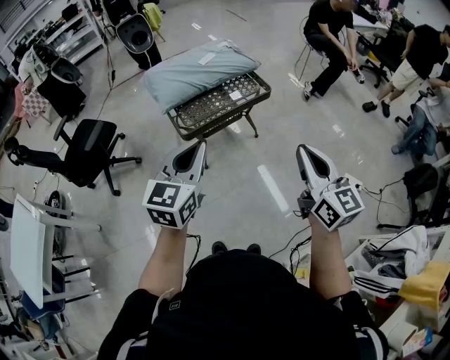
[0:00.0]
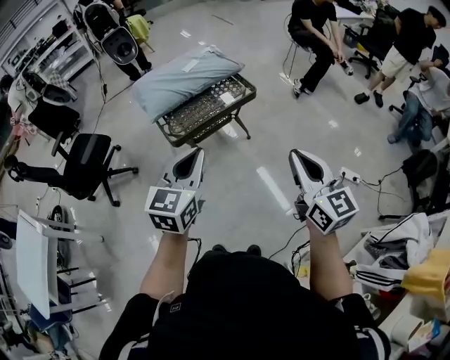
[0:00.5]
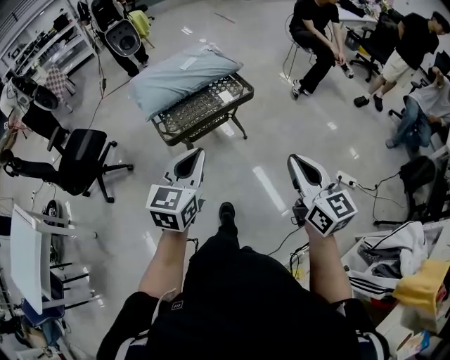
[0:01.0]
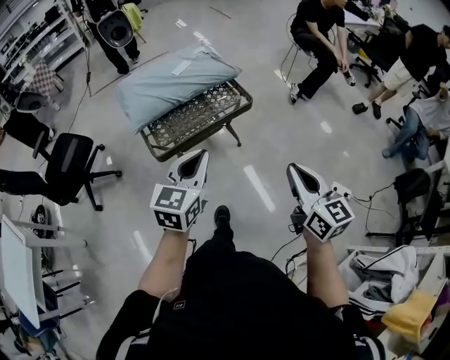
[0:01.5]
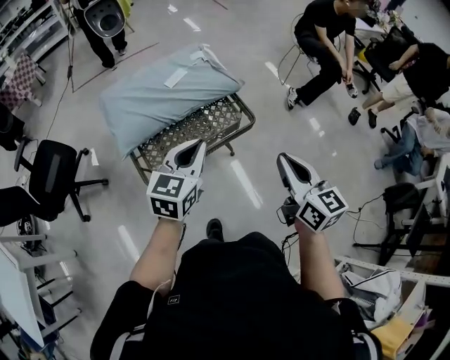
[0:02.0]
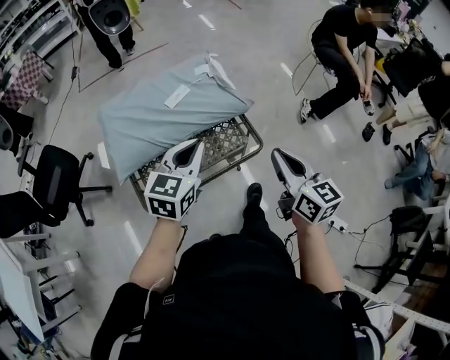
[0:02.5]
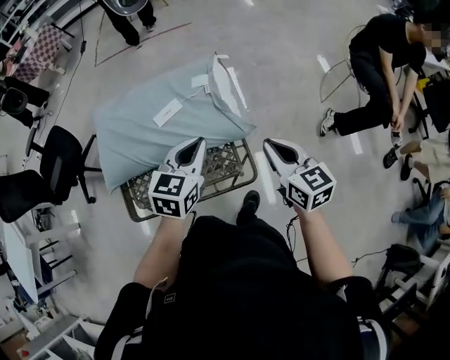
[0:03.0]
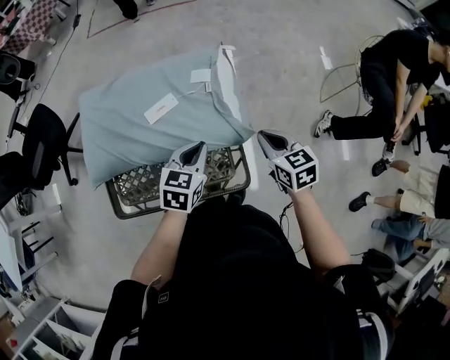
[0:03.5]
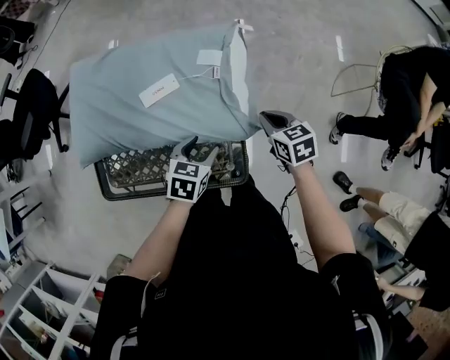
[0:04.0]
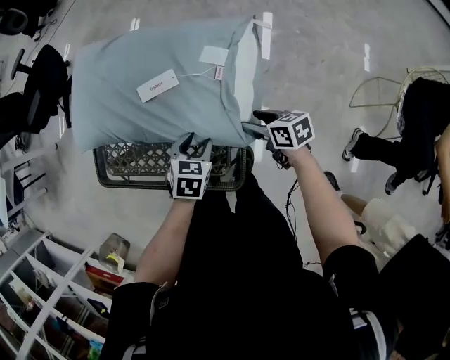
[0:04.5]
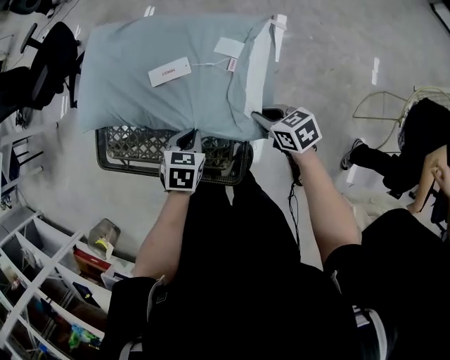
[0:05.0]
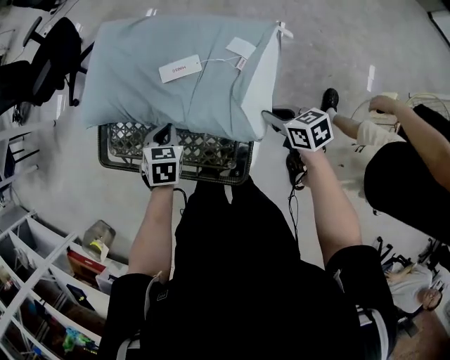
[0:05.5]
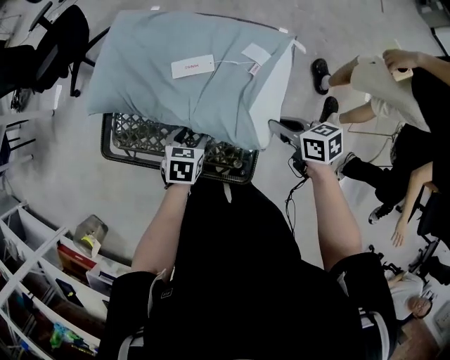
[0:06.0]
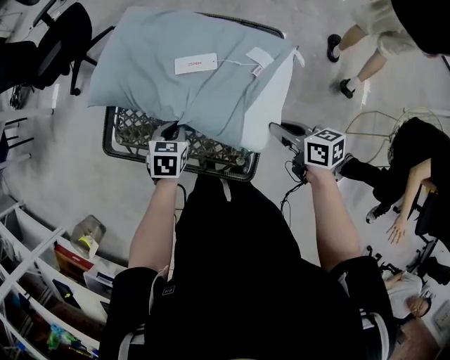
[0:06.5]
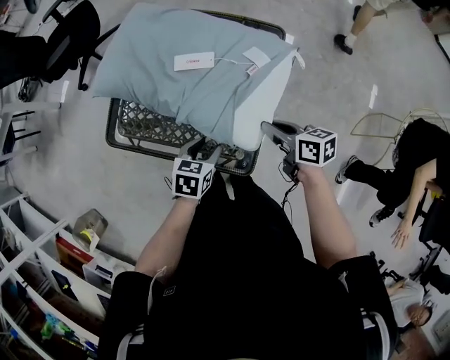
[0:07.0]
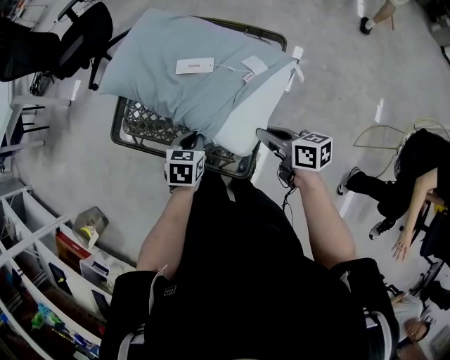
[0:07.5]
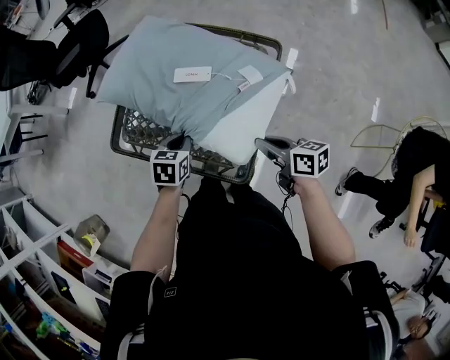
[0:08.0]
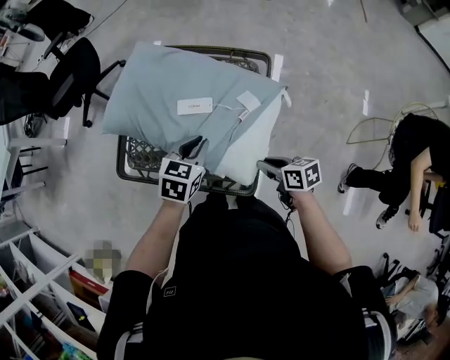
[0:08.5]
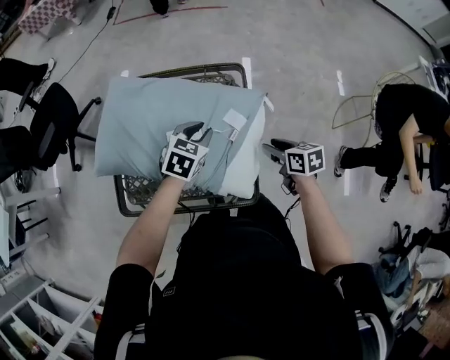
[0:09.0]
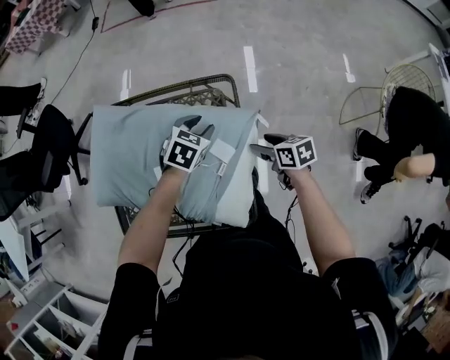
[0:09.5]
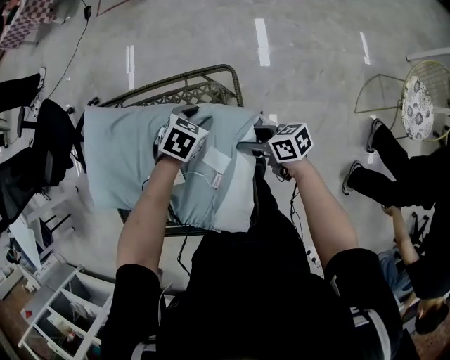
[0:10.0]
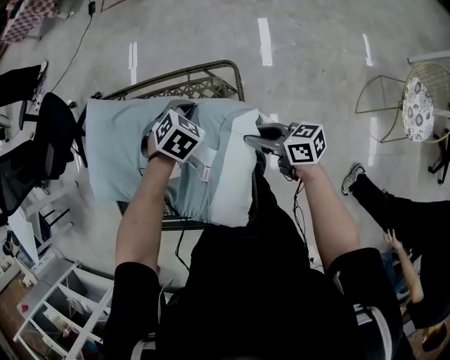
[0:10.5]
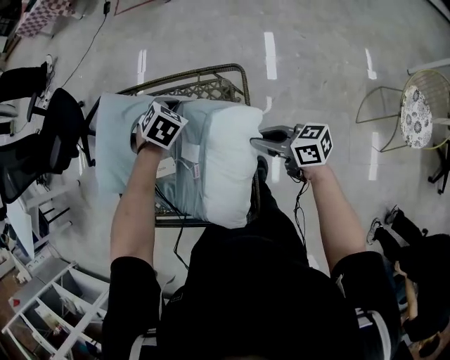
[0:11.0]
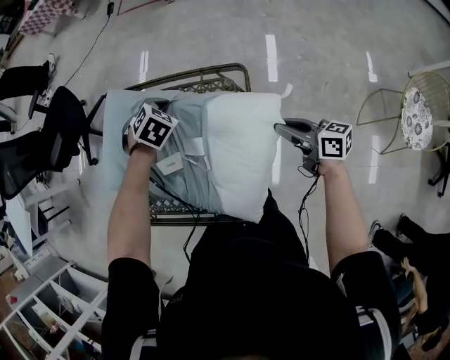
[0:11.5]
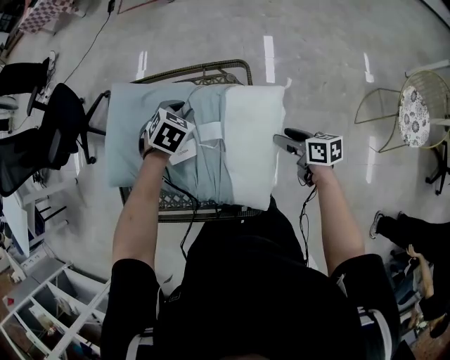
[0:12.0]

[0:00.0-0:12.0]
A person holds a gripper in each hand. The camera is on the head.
0:00.0 to 0:02.0: The grippers both shift forward by roughly 30 cm.
0:02.0 to 0:04.0: The right gripper moves approximately 60 cm, and tilts its fingers some 40 degrees downward. The left gripper changes place by approximately 40 cm, tips its fingers downward by about 30 degrees, and opens up.
0:04.0 to 0:06.0: The left gripper moves approximately 10 cm, rotates some 20 degrees, and closes, then reopens. Meanwhile the right gripper reaches some 5 cm downward, then returns, rotates some 30 degrees, and opens, then closes once more.
0:06.0 to 0:08.0: The right gripper shifts about 5 cm to the left; the left gripper moves forward and backward over roughly 10 cm, changing direction 2 times, and closes its fingers.
0:08.0 to 0:10.0: The left gripper reaches some 10 cm upward, then returns, rotates around the line of its fingers by some 40 degrees, clockwise from behind, and opens its fingers. The right gripper moves roughly 25 cm, and opens its fingers.
0:10.0 to 0:12.0: The left gripper travels to the left and upward by about 10 cm, and closes, then reopens. The right gripper shifts about 10 cm backward and to the right, reaches roughly 10 cm upward, then returns, and closes and opens again.

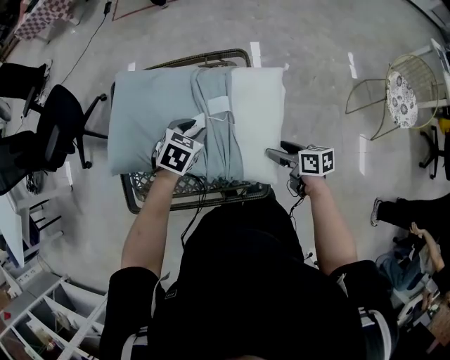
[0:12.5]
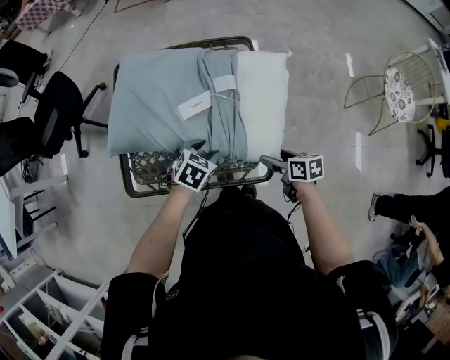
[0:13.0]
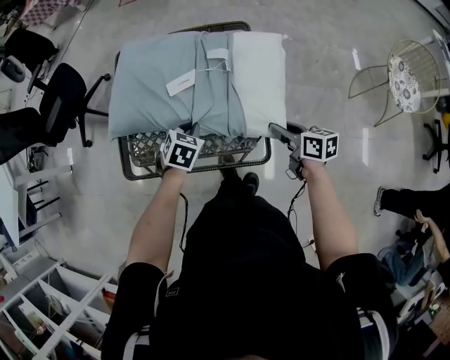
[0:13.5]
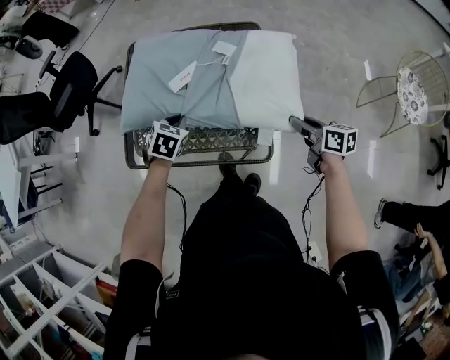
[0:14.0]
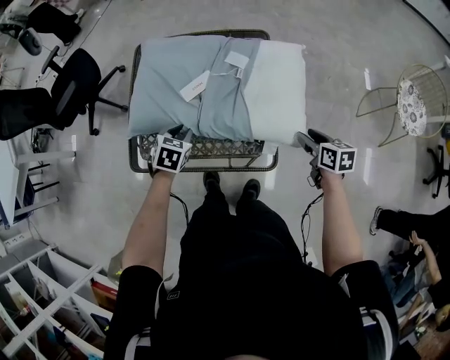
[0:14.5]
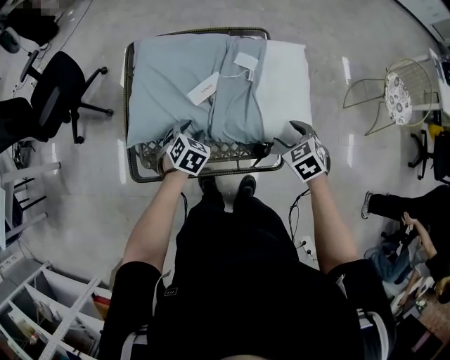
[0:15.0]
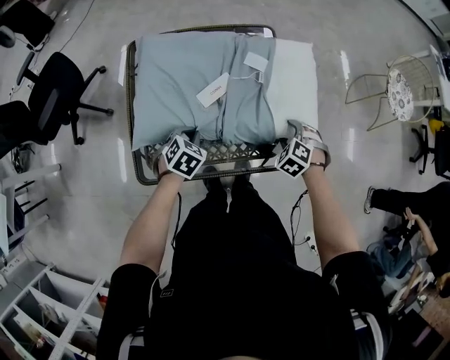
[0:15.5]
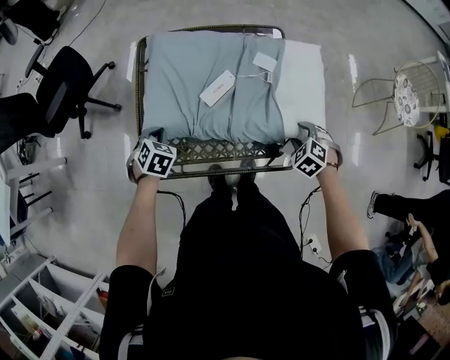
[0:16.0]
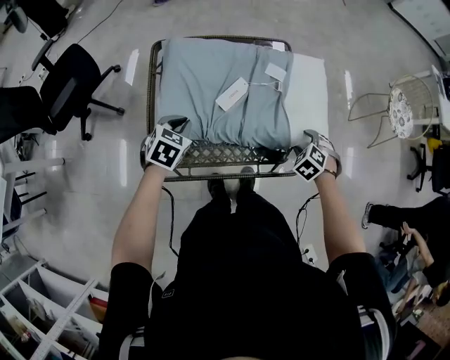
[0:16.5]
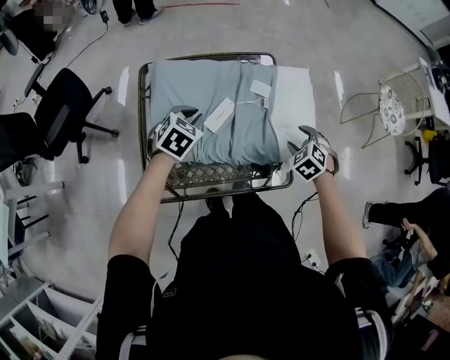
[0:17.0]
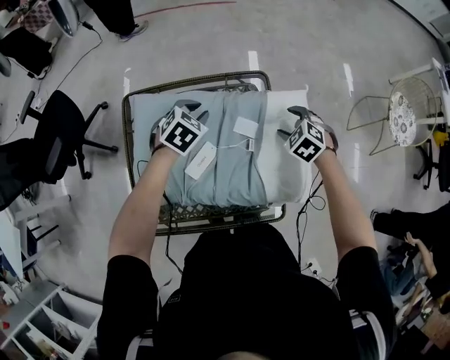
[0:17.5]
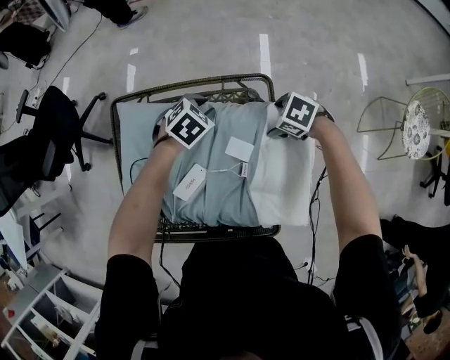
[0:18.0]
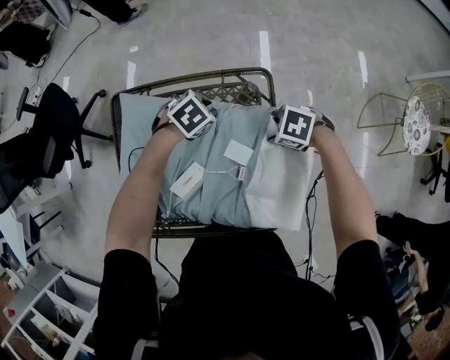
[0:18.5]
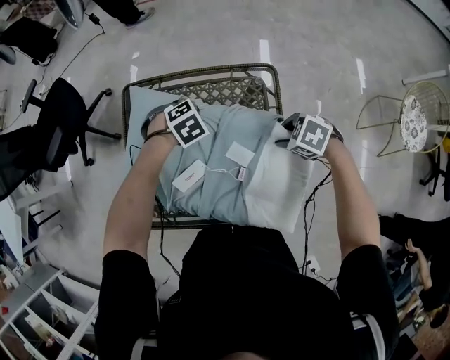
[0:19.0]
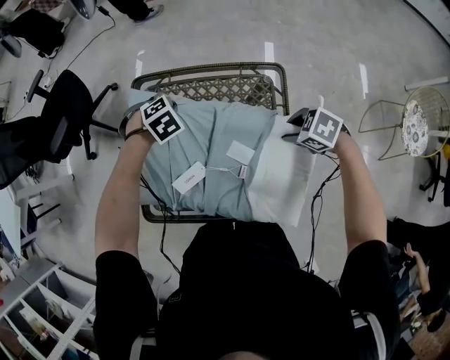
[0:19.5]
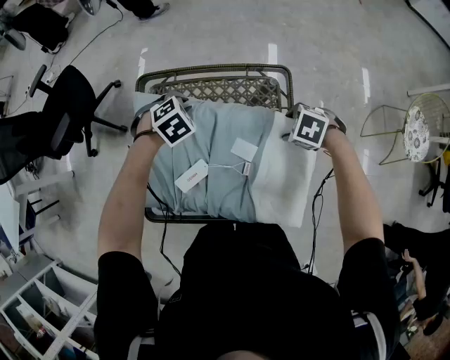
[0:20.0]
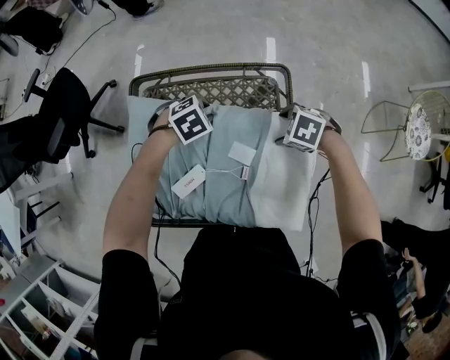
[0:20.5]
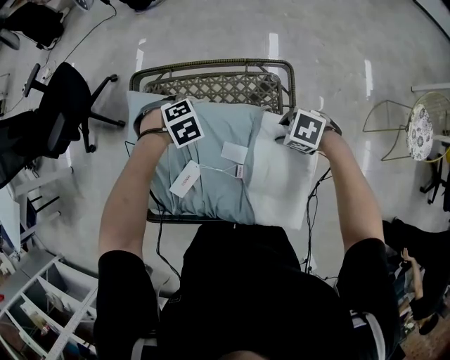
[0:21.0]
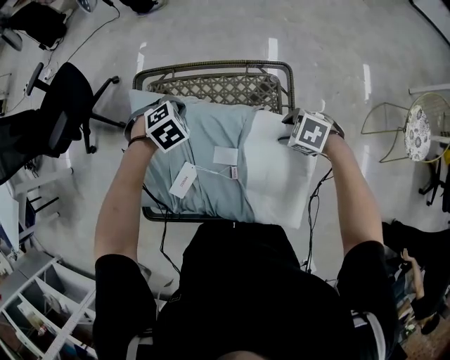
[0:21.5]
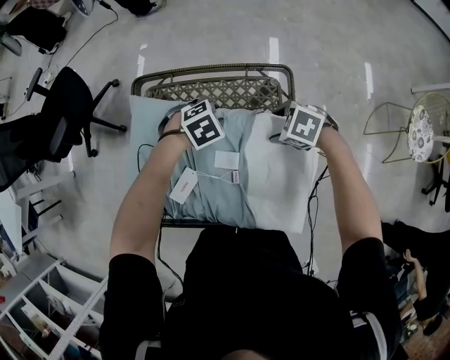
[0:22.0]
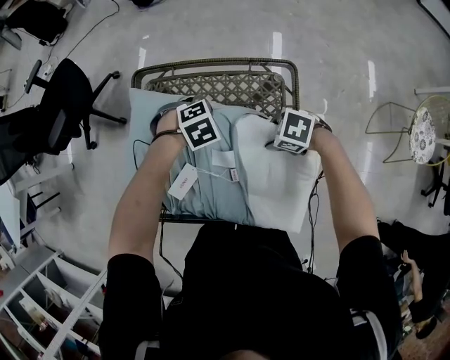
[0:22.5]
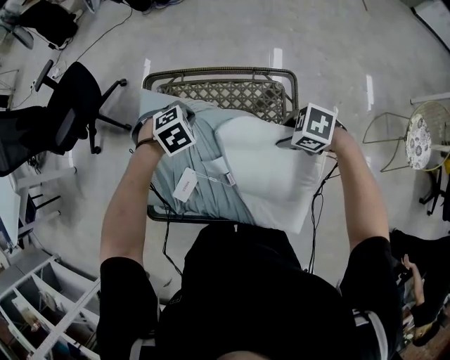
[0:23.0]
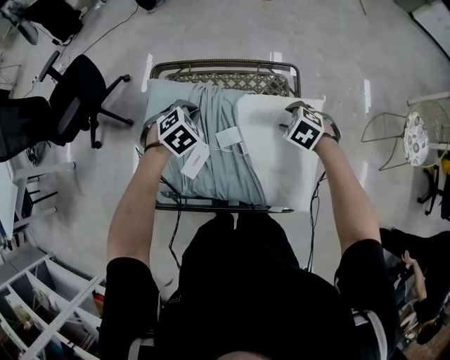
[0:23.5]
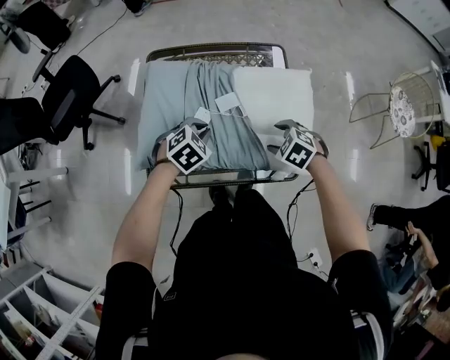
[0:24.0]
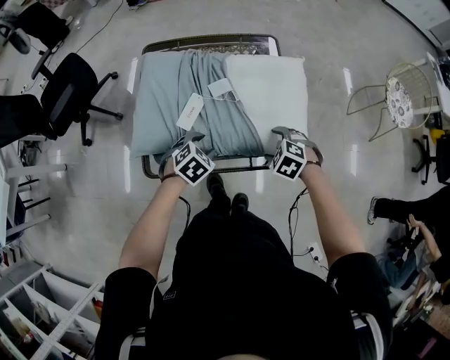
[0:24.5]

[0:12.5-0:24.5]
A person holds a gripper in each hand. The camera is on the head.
0:12.5 to 0:14.5: The left gripper moves to the left and backward, roughly 15 cm. The right gripper shifts about 10 cm backward and to the right.
0:14.5 to 0:16.5: The left gripper moves about 15 cm, and opens, then closes again. Meanwhile the right gripper ends up approximately 15 cm from where it was, and rolls counterclockwise, seen from behind, by approximately 60 degrees.
0:16.5 to 0:18.5: The left gripper changes place by about 35 cm, and turns by approximately 30 degrees. Meanwhile the right gripper goes upward and returns, approximately 5 cm each way, and turns by roughly 40 degrees.
0:18.5 to 0:20.5: The right gripper shifts by roughly 5 cm. The left gripper closes and opens again.
0:20.5 to 0:22.5: The left gripper closes up.
0:22.5 to 0:24.5: The left gripper shifts by about 30 cm, turns by about 20 degrees, and opens up. Meanwhile the right gripper changes place by some 25 cm, and changes its angle by approximately 30 degrees.

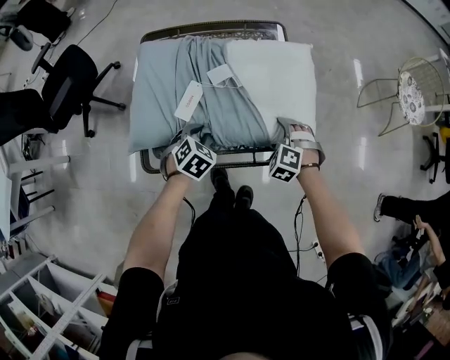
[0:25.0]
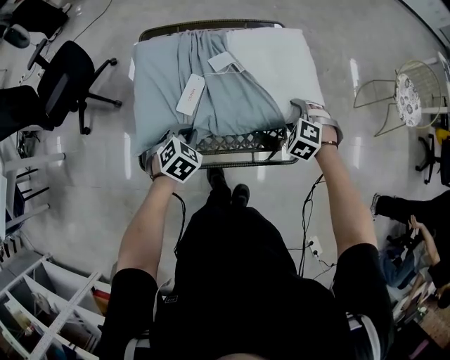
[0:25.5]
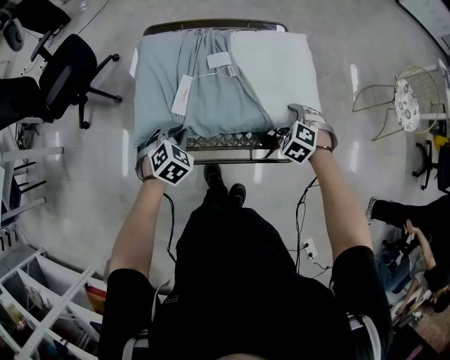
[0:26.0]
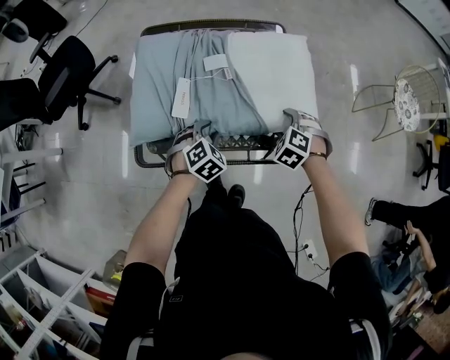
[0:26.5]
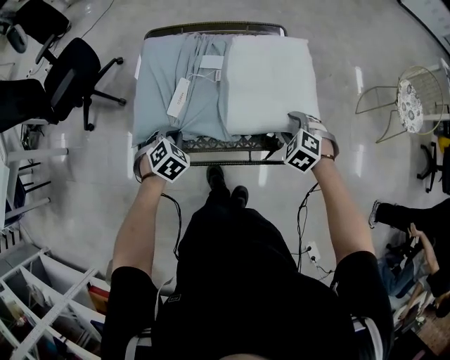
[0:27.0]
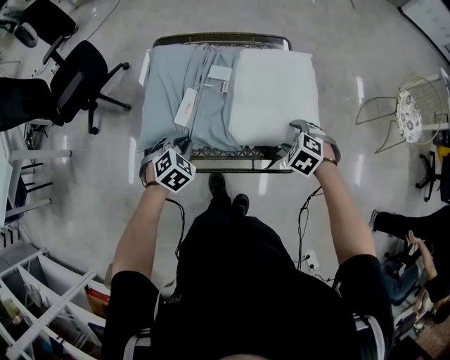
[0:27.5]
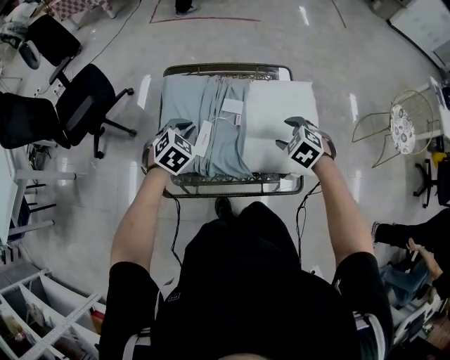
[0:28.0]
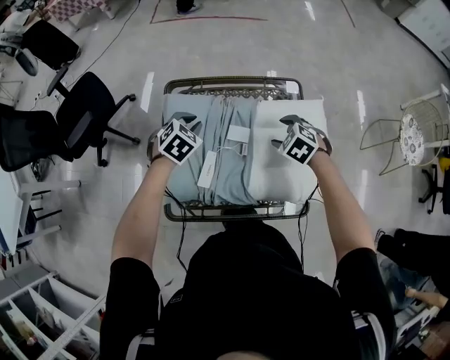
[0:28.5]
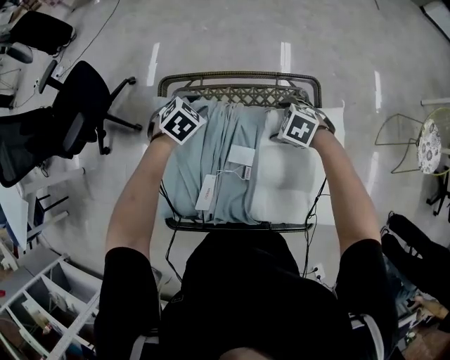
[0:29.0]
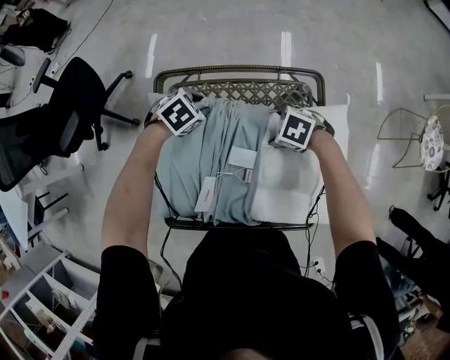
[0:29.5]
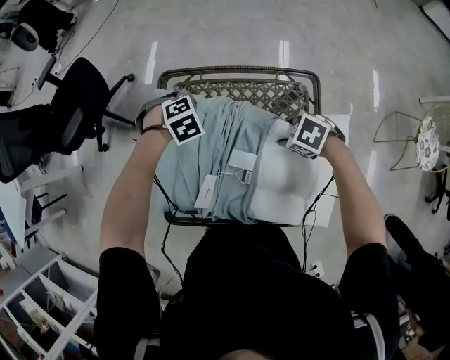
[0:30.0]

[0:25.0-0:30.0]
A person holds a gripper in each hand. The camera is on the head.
0:25.0 to 0:27.5: The right gripper shifts roughly 5 cm upward; the left gripper moves left and right over approximately 10 cm, changing direction 2 times.
0:27.5 to 0:30.0: The left gripper goes upward and returns, some 10 cm each way, swivels approximately 30 degrees, and opens, then closes again, while the right gripper moves up and down over about 10 cm, changing direction 2 times, swivels roughly 30 degrees, and opens, then closes once more.
